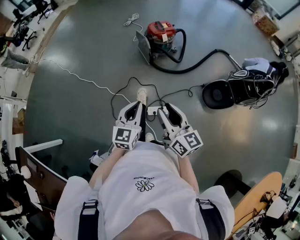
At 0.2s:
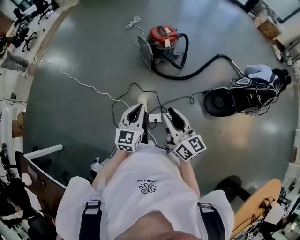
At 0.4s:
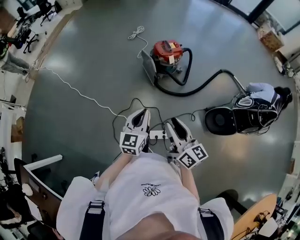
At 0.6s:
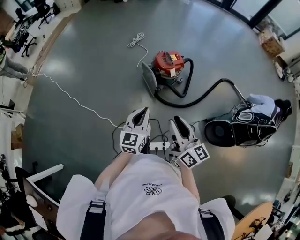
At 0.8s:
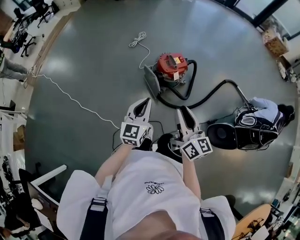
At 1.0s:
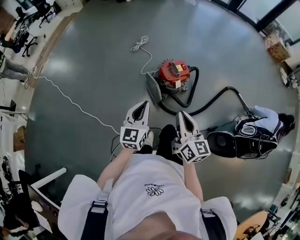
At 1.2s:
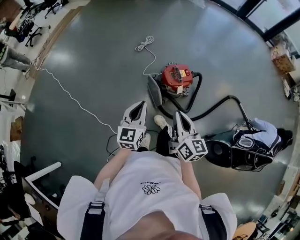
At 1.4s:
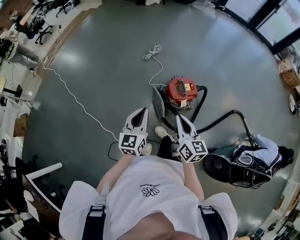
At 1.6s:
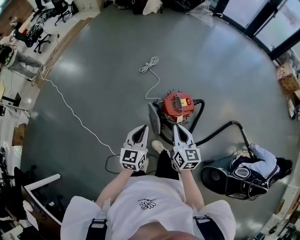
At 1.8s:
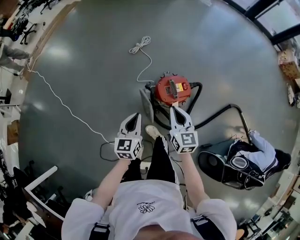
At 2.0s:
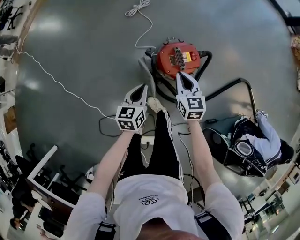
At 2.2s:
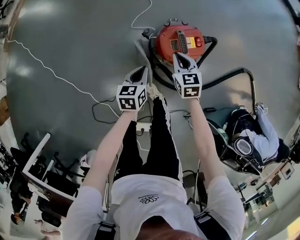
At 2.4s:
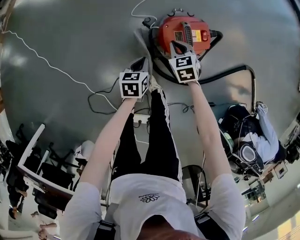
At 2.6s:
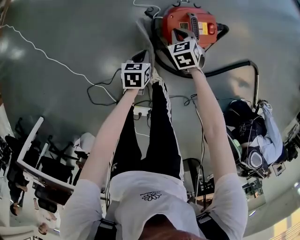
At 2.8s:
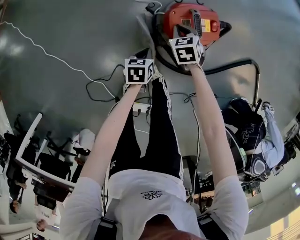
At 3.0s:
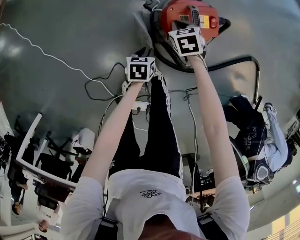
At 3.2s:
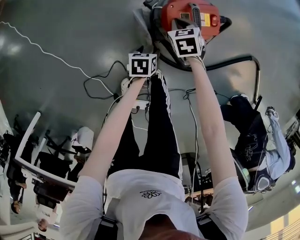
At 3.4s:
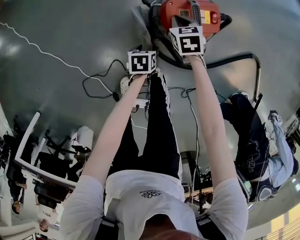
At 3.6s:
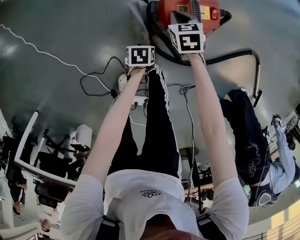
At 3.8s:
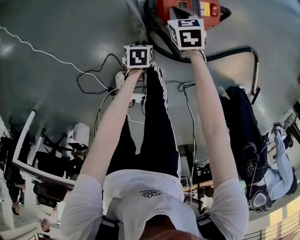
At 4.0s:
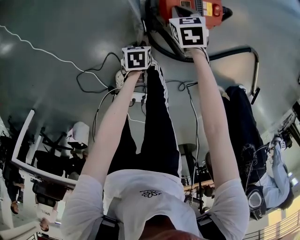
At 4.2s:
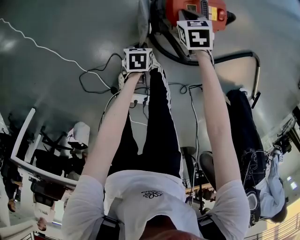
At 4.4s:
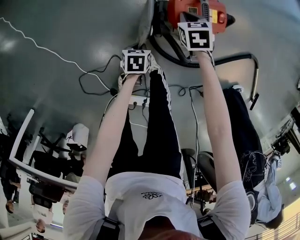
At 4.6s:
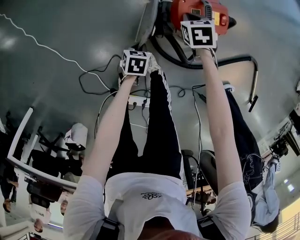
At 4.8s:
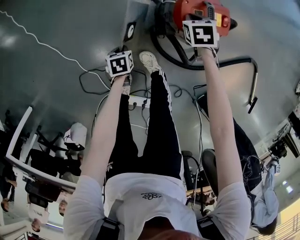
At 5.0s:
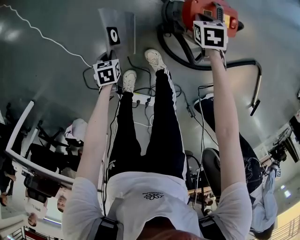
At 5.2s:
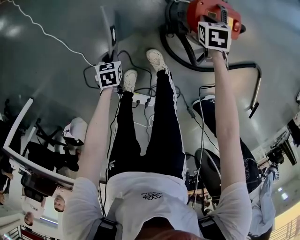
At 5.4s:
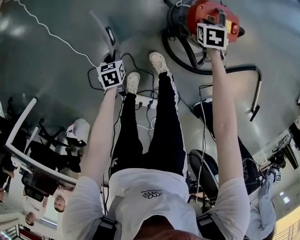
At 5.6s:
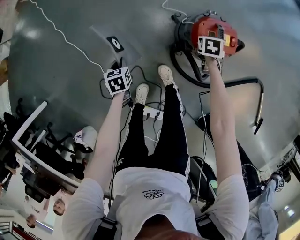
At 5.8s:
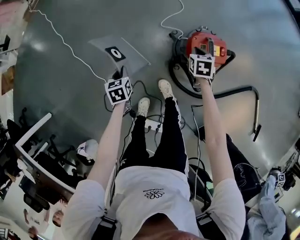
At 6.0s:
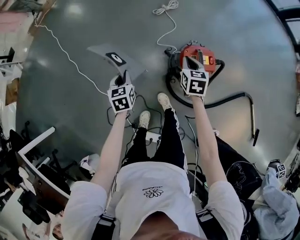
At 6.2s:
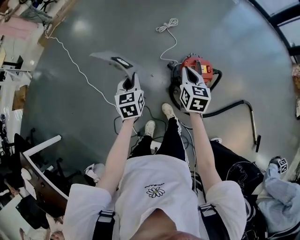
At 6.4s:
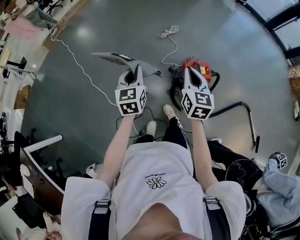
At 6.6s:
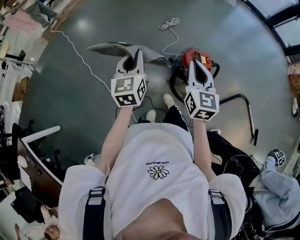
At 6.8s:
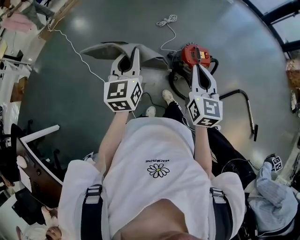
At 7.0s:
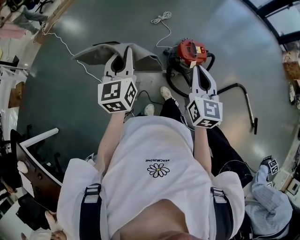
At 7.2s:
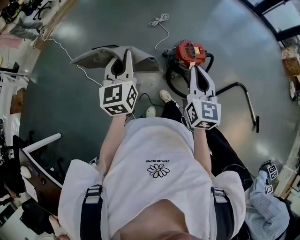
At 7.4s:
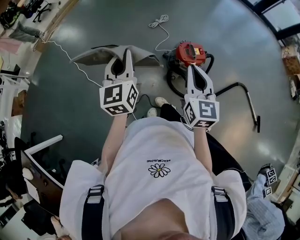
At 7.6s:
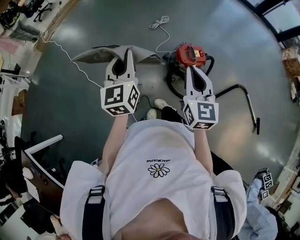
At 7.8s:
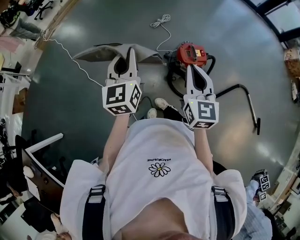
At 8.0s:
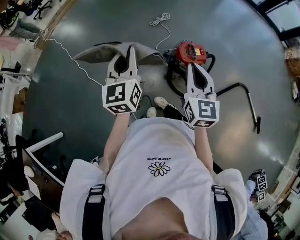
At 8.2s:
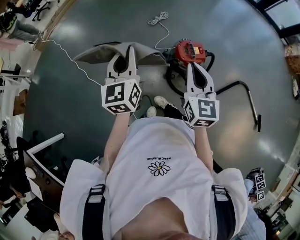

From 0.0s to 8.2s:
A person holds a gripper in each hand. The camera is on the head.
From 0.0s to 1.6s: Both grippers are carried forward, approximately 60 cm. The right gripper closes up.
From 1.6s to 3.2s: The left gripper heads downward, covering some 50 cm, angles its fingers downward, by approximately 40 degrees, and opens. Meanwhile the right gripper goes about 50 cm downward and forward, and angles its fingers downward, by some 40 degrees.
From 3.2s to 5.0s: The left gripper moves to the left and backward, about 25 cm, turns by approximately 20 degrees, and closes its fingers.
From 5.0s to 6.6s: The right gripper heads upward and backward, covering roughly 60 cm, and tips its fingers upward by some 60 degrees. The left gripper goes approximately 60 cm upward, and tilts its fingers approximately 60 degrees upward.
From 6.6s to 8.2s: The left gripper travels upward by about 5 cm.

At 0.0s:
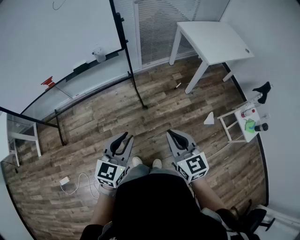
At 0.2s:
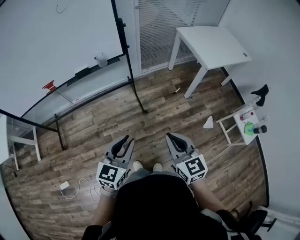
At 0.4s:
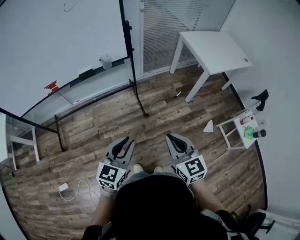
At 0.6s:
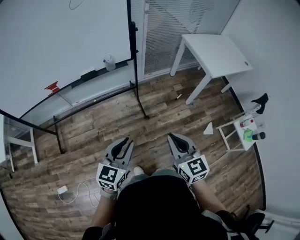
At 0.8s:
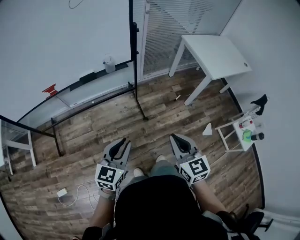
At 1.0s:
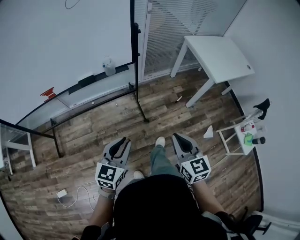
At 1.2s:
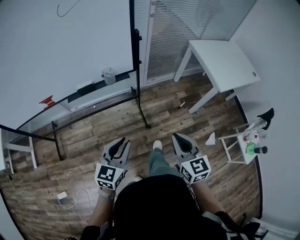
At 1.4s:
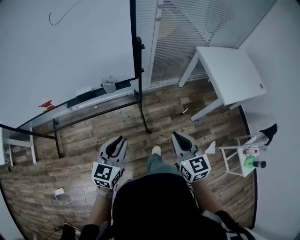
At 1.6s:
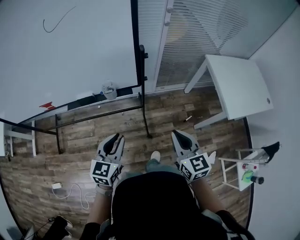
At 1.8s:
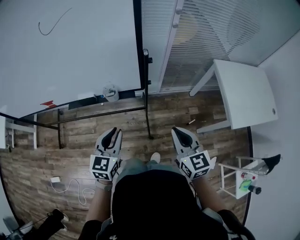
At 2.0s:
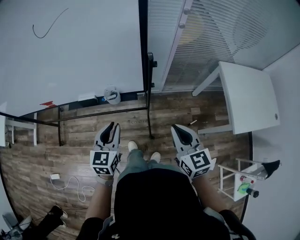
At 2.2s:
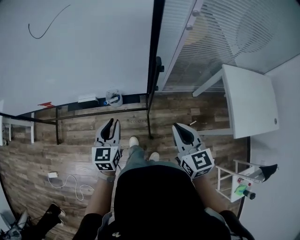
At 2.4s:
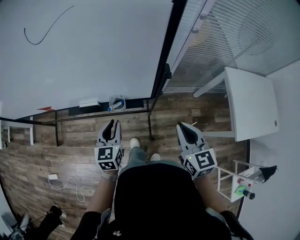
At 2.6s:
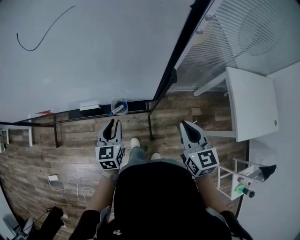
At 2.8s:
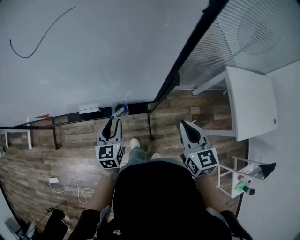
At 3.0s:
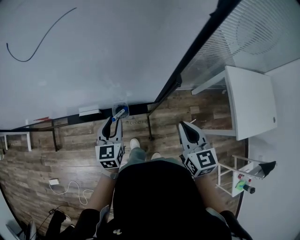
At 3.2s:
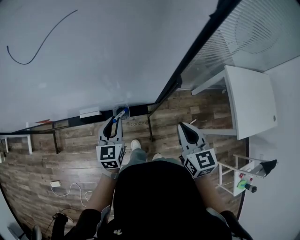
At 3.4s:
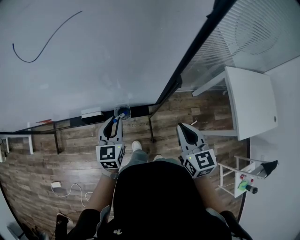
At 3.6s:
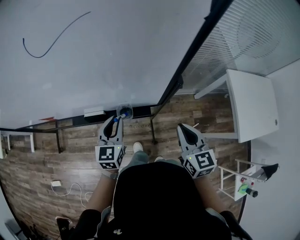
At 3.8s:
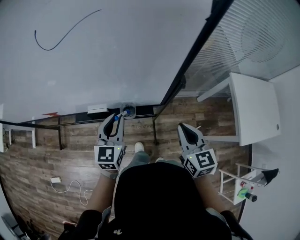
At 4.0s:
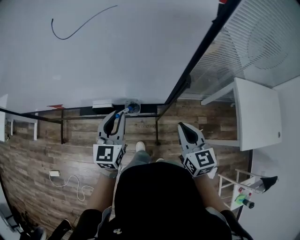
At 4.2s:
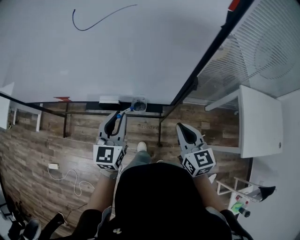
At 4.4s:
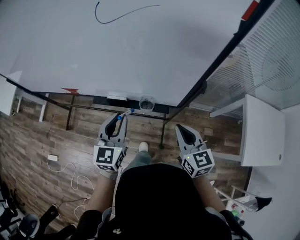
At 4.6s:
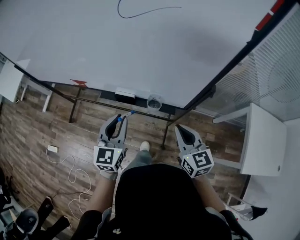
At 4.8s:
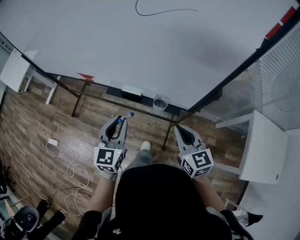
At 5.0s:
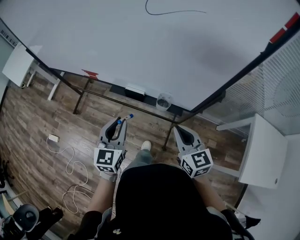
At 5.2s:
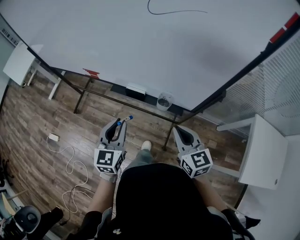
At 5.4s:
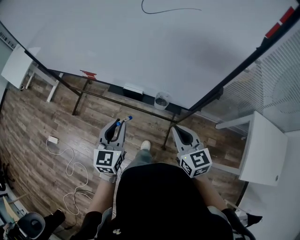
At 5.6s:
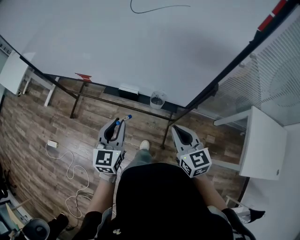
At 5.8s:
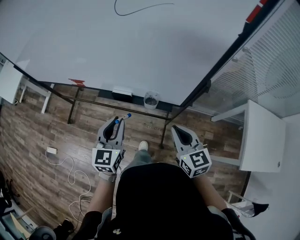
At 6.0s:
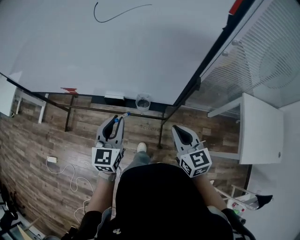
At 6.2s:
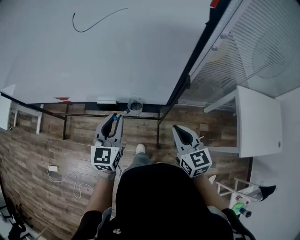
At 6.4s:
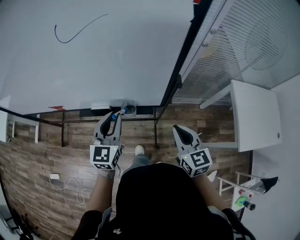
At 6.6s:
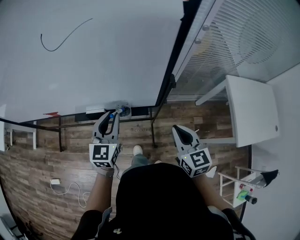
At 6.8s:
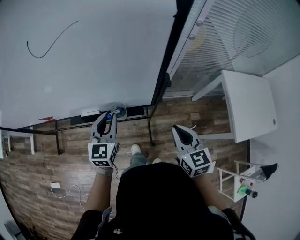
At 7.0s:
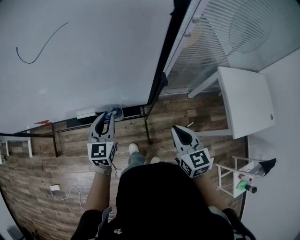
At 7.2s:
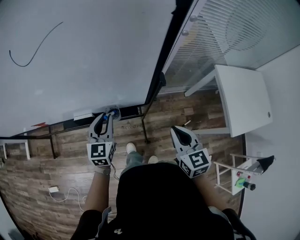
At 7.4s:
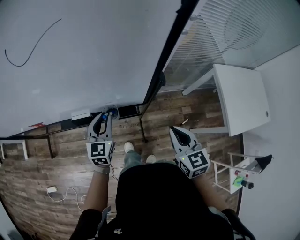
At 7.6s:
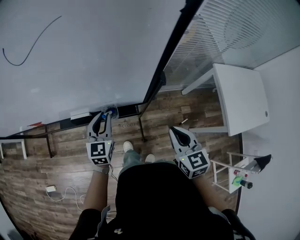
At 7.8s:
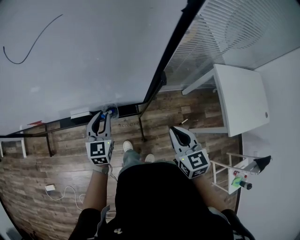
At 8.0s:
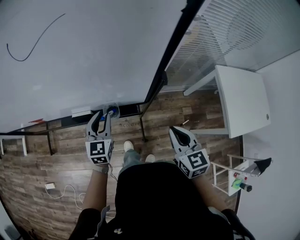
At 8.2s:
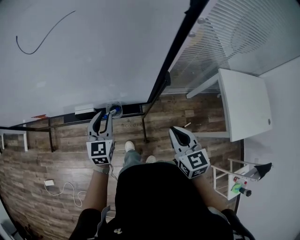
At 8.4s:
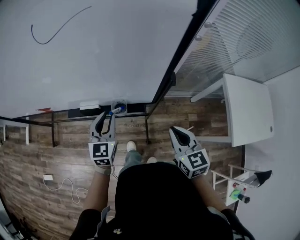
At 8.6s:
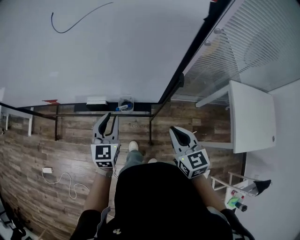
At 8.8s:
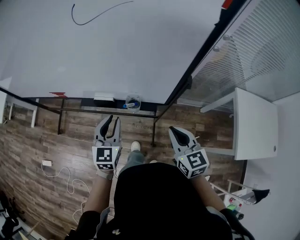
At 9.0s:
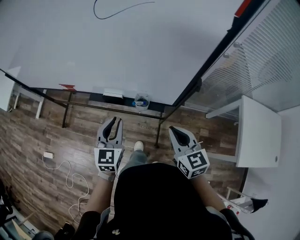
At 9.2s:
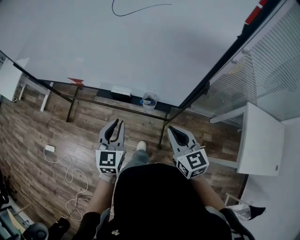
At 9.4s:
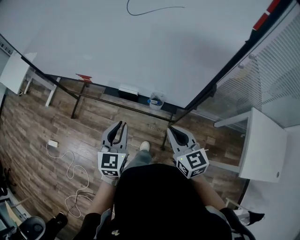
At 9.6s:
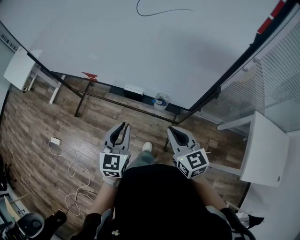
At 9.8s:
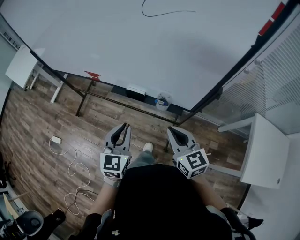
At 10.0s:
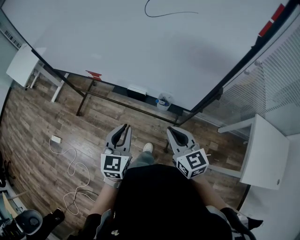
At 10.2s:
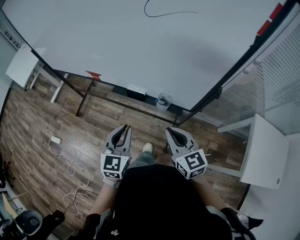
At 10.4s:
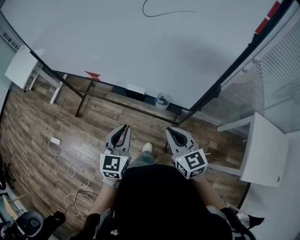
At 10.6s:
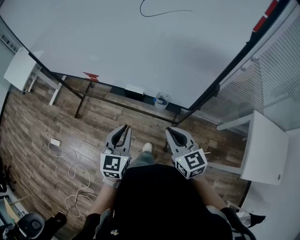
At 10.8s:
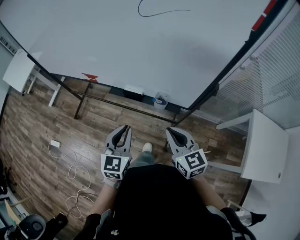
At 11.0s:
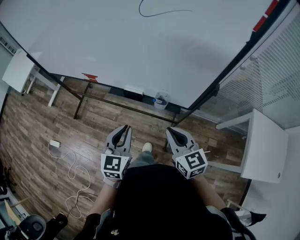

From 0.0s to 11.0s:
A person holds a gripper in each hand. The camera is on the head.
From 0.0s to 1.6s: The grippers both shift forward by roughly 35 cm.
From 1.6s to 3.2s: The grippers both shift forward by approximately 25 cm.
From 3.2s to 4.8s: The left gripper is displaced backward, to the left and upward by about 20 cm. The right gripper travels to the left by approximately 15 cm, and rotates roughly 30 degrees.
From 4.8s to 6.2s: The grippers both shift to the right by about 10 cm.
From 6.2s to 7.8s: The right gripper heads to the right, covering approximately 5 cm. Meanwhile the left gripper shifts approximately 15 cm downward and forward.
From 7.8s to 9.4s: The right gripper moves approximately 15 cm, and swivels approximately 30 degrees, while the left gripper shifts by roughly 20 cm.
From 9.4s to 11.0s: The grippers stay close to where they were, moving slightly.

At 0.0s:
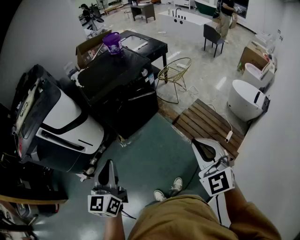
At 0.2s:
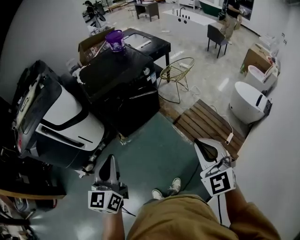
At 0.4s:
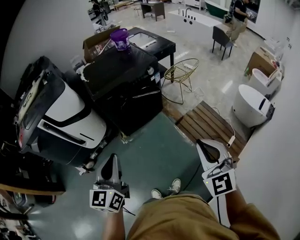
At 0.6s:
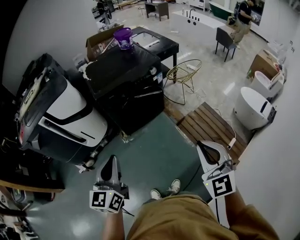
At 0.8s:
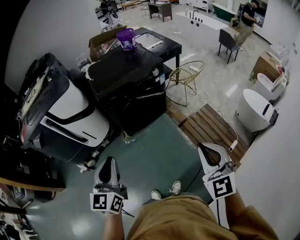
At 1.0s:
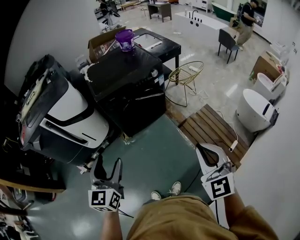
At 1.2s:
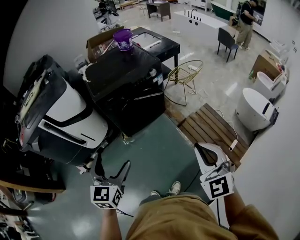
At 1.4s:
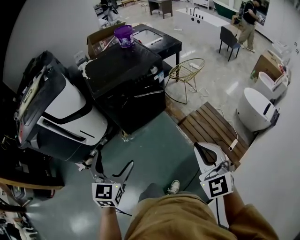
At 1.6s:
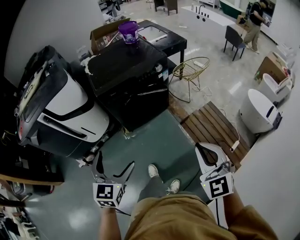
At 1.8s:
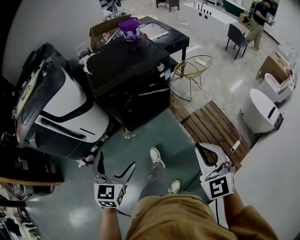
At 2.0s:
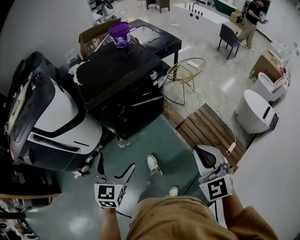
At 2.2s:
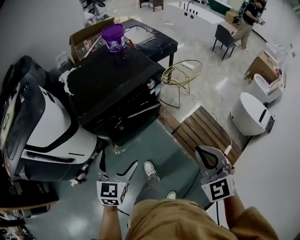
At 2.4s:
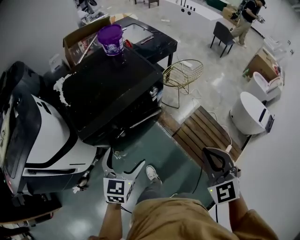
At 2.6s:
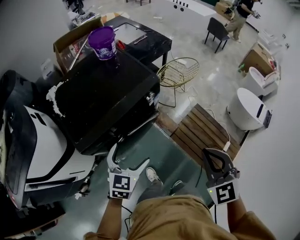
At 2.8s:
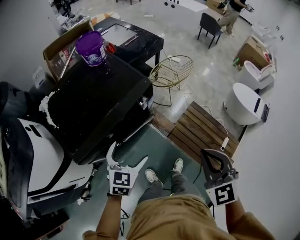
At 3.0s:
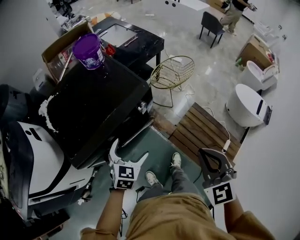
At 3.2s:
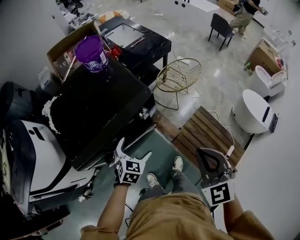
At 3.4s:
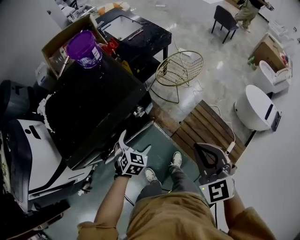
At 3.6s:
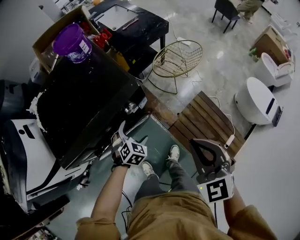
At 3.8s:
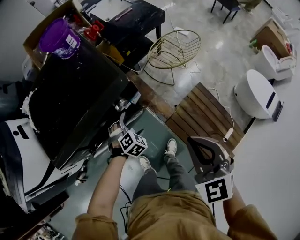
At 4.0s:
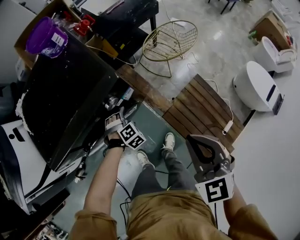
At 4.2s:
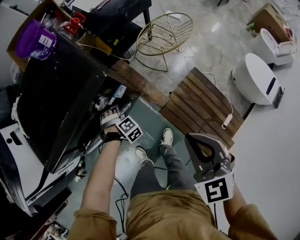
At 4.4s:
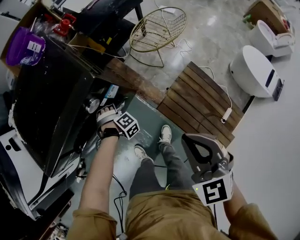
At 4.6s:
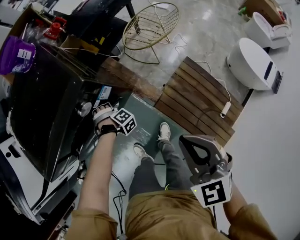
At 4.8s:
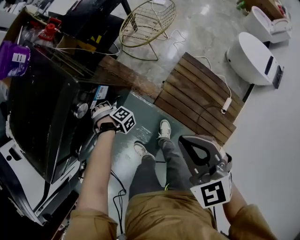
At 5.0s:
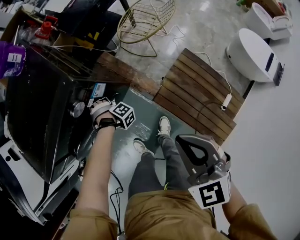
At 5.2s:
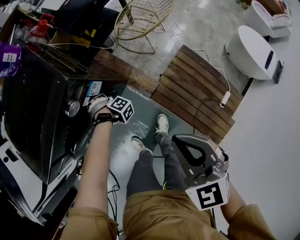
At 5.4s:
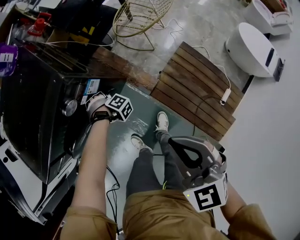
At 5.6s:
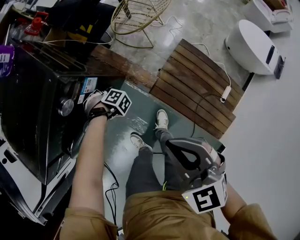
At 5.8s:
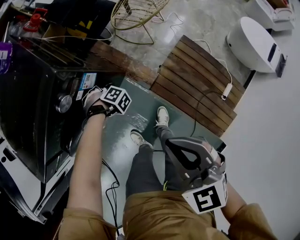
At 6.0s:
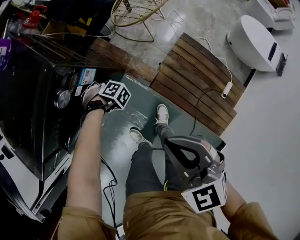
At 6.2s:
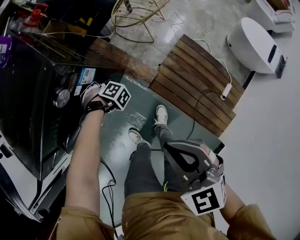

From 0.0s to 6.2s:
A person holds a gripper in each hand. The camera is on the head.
From 0.0s to 1.6s: The left gripper is displaced downward by roughly 10 cm, rotates some 20 degrees, and opens up. The right gripper moves forward, about 5 cm.
From 1.6s to 3.2s: The two grippers go approximately 40 cm forward. The left gripper rotates roughly 30 degrees.
From 3.2s to 4.6s: The left gripper shifts roughly 25 cm downward, swivels about 80 degrees, and closes its fingers, while the right gripper ends up approximately 20 cm from where it was.
From 4.6s to 6.2s: The right gripper shifts some 10 cm to the left and downward.
